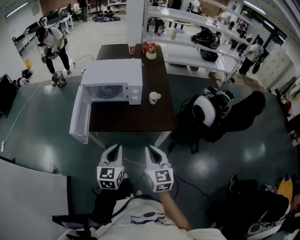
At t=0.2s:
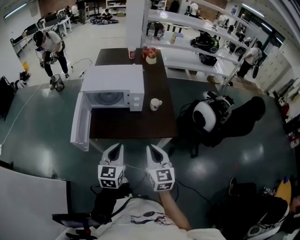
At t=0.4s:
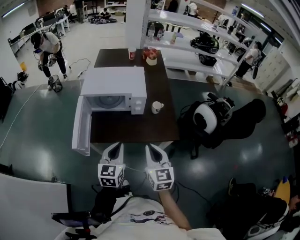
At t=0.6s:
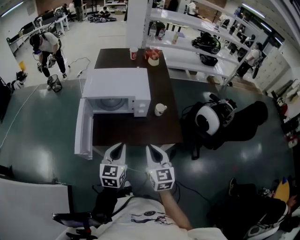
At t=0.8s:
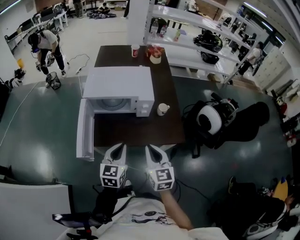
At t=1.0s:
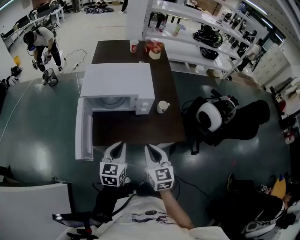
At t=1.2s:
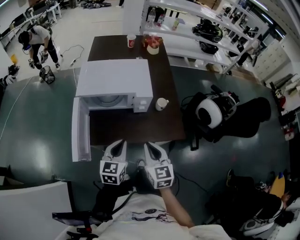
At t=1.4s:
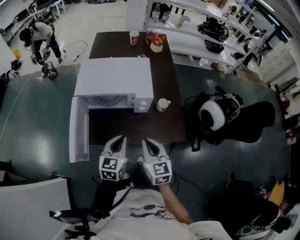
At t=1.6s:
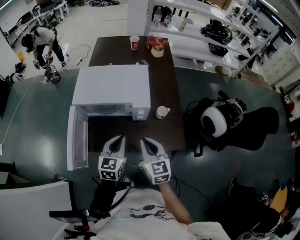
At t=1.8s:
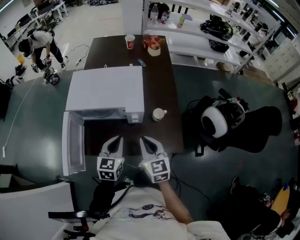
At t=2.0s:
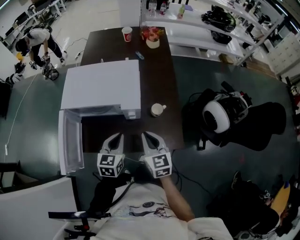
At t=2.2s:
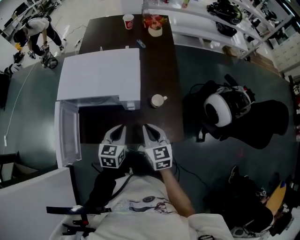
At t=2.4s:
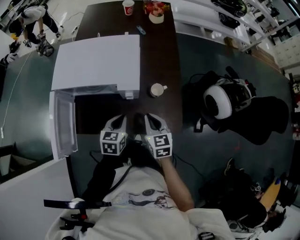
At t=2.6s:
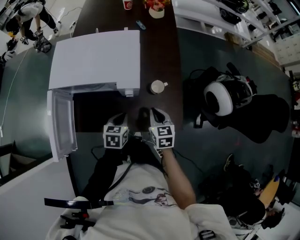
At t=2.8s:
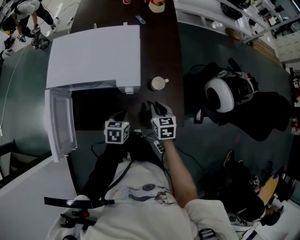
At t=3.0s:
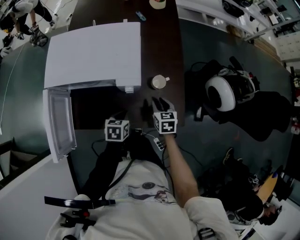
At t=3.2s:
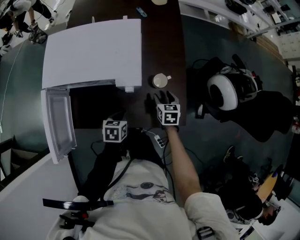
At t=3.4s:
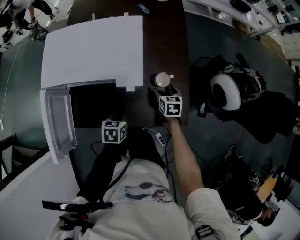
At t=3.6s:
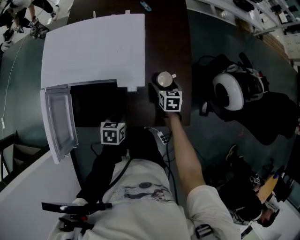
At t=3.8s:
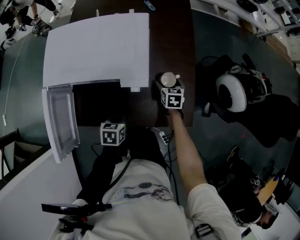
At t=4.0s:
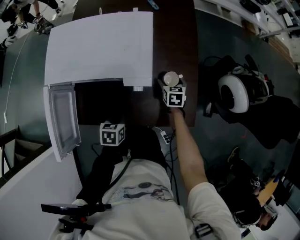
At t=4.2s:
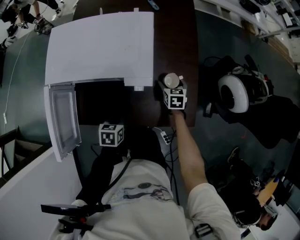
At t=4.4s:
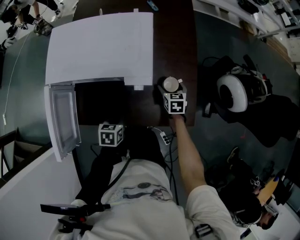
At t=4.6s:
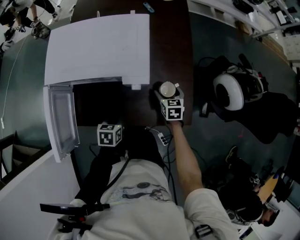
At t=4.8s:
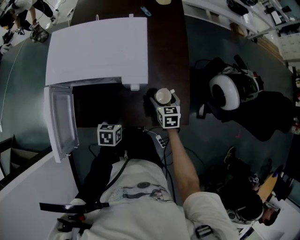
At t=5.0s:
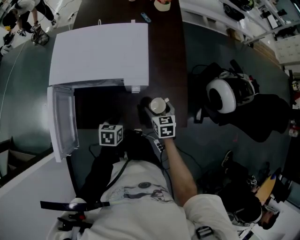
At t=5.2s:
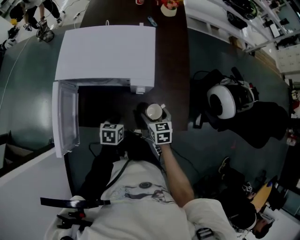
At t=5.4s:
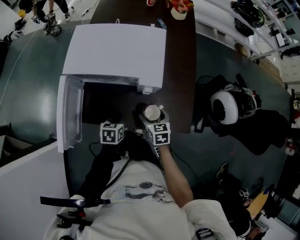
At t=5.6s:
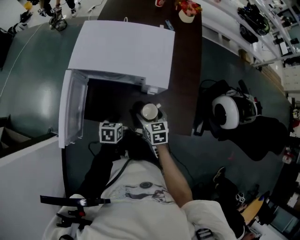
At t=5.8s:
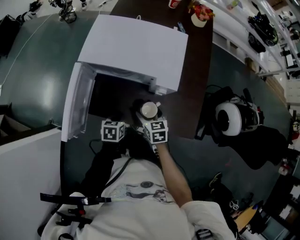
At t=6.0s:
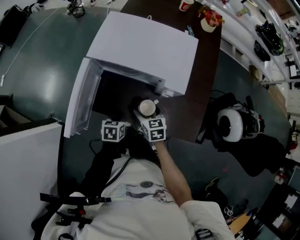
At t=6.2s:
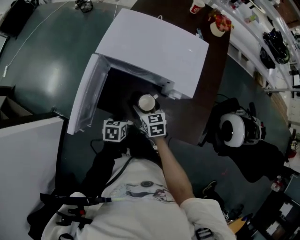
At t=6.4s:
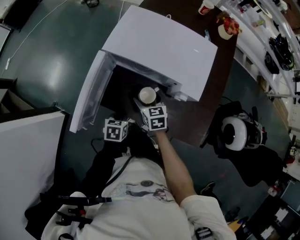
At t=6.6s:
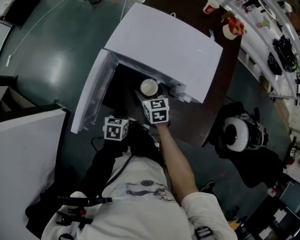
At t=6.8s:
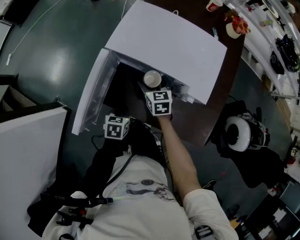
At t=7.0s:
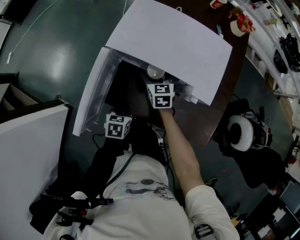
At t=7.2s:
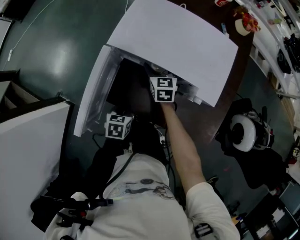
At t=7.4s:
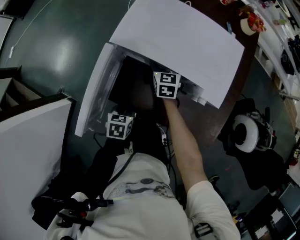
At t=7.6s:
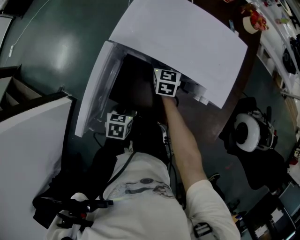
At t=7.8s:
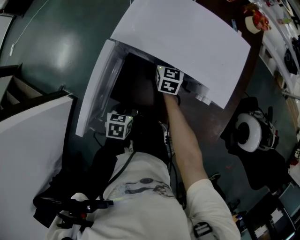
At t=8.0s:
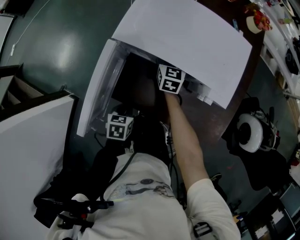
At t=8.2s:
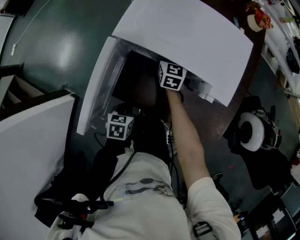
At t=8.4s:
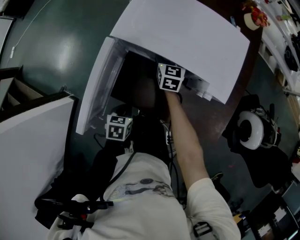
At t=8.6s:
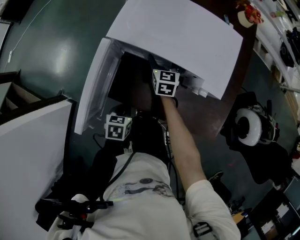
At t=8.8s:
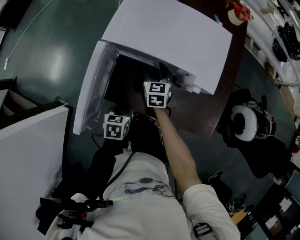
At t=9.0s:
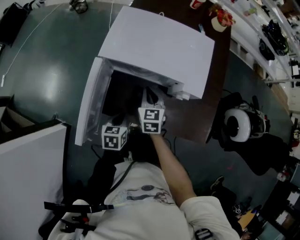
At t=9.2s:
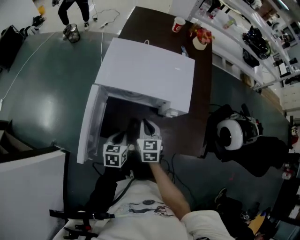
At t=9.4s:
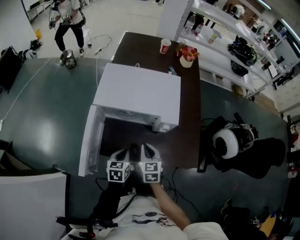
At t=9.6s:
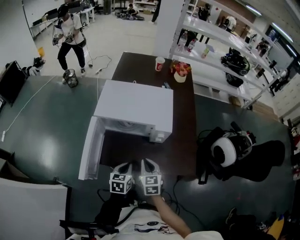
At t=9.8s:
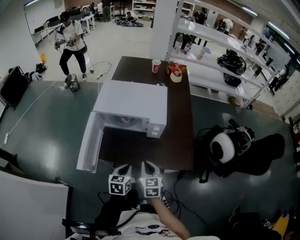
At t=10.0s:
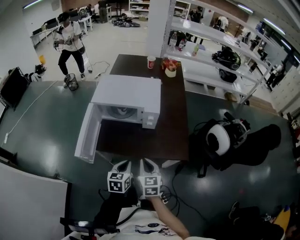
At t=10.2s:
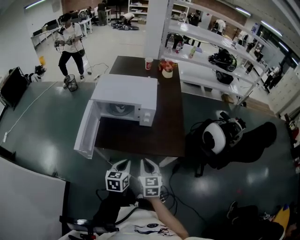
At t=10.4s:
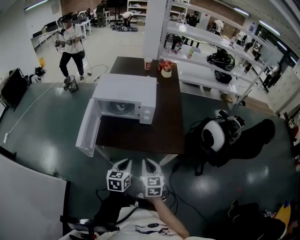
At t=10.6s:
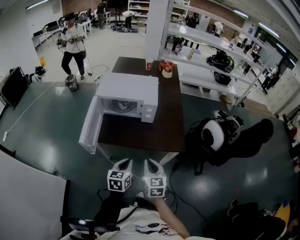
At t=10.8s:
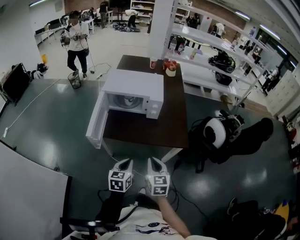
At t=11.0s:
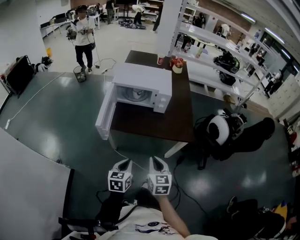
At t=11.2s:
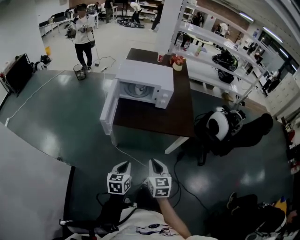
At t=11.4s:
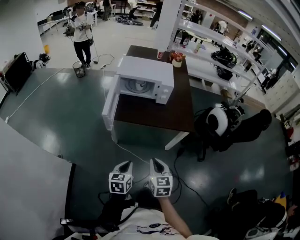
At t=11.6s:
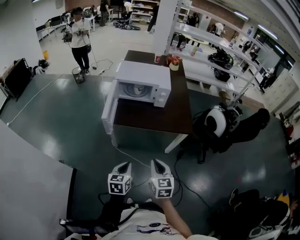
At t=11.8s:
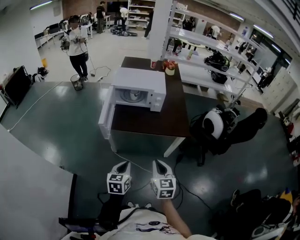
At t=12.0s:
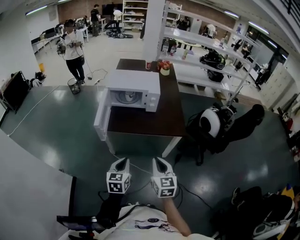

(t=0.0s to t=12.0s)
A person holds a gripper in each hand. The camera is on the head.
t=0.0s - t=1.6s: Both grippers travel together forward, approximately 20 cm.
t=1.6s - t=3.0s: The right gripper travels downward, to the right and forward by about 25 cm, and changes its angle by roughly 30 degrees, while the left gripper moves downward, about 20 cm, and tilts its fingers some 30 degrees downward.
t=3.0s - t=4.4s: The left gripper heads to the left, covering roughly 5 cm; the right gripper travels forward and downward by roughly 10 cm, and opens its fingers.
t=4.4s - t=6.0s: The right gripper is displaced to the left and backward by about 25 cm, and turns by roughly 30 degrees. The left gripper heads to the left, covering roughly 5 cm.
t=6.0s - t=7.6s: The right gripper travels forward by approximately 20 cm. Meanwhile the left gripper moves to the left, roughly 5 cm.
t=7.6s - t=9.0s: The right gripper shifts some 10 cm backward, and closes its fingers.
t=9.0s - t=10.4s: The left gripper is displaced backward, to the right and upward by about 25 cm, and changes its angle by about 20 degrees. Meanwhile the right gripper goes approximately 30 cm backward and to the right.
t=10.4s - t=12.0s: The left gripper travels backward and to the left by approximately 15 cm; the right gripper travels backward by roughly 15 cm.

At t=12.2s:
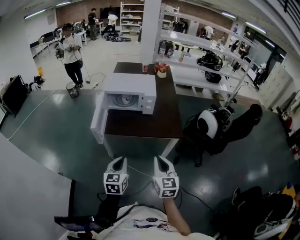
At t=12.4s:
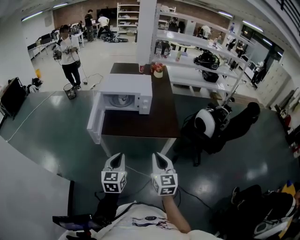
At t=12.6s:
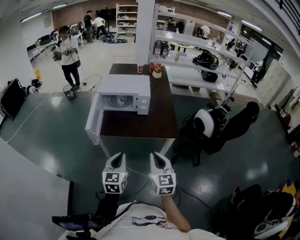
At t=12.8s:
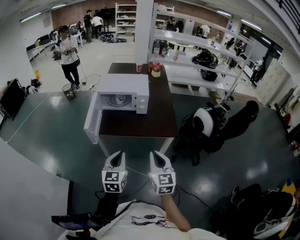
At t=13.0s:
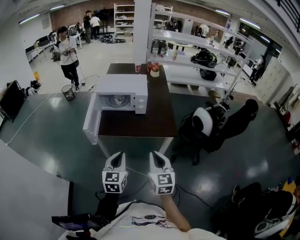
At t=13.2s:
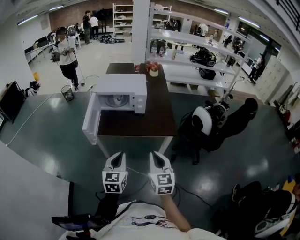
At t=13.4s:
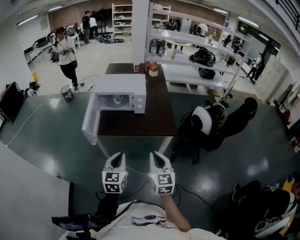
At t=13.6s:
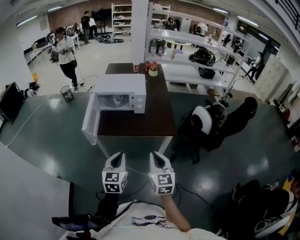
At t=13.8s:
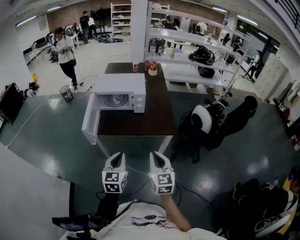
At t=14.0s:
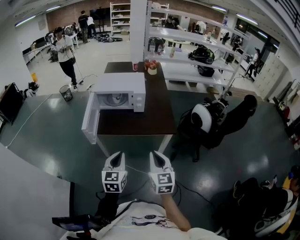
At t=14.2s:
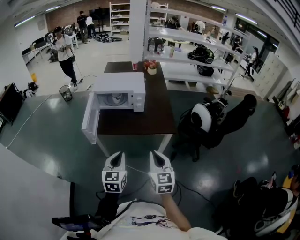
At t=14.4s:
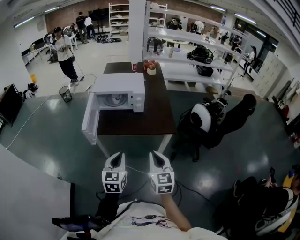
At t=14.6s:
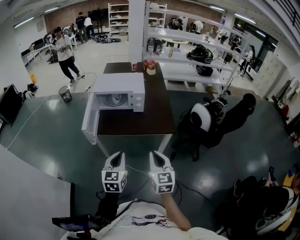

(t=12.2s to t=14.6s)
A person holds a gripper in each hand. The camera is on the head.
t=12.2s - t=13.4s: The left gripper moves some 5 cm.
t=13.4s - t=14.6s: The two grippers keep their place.

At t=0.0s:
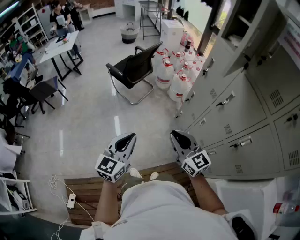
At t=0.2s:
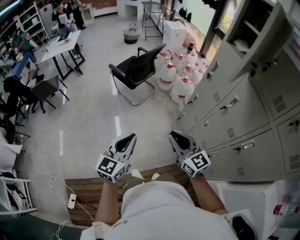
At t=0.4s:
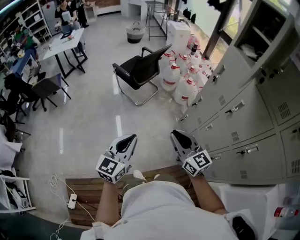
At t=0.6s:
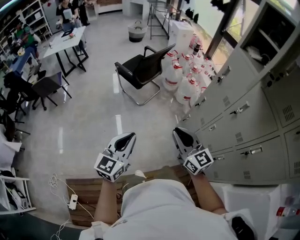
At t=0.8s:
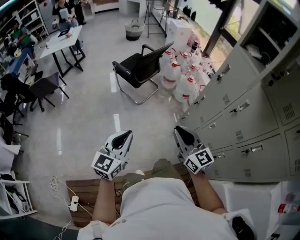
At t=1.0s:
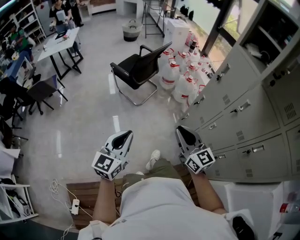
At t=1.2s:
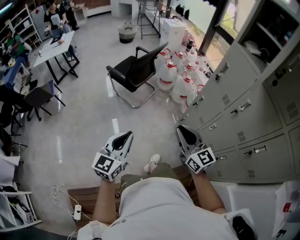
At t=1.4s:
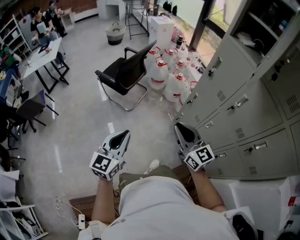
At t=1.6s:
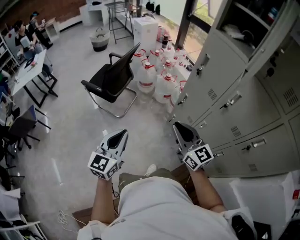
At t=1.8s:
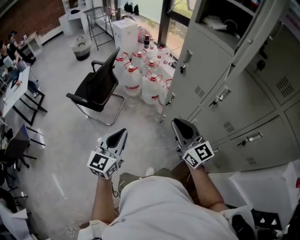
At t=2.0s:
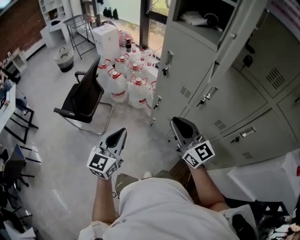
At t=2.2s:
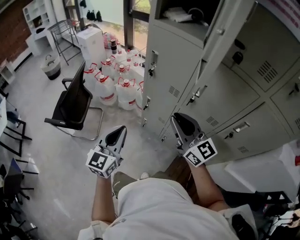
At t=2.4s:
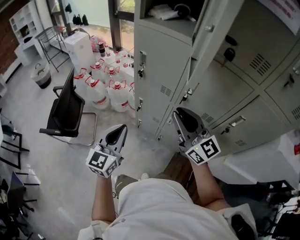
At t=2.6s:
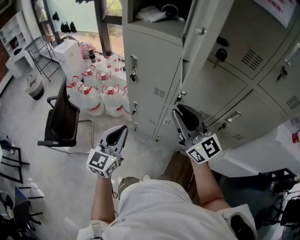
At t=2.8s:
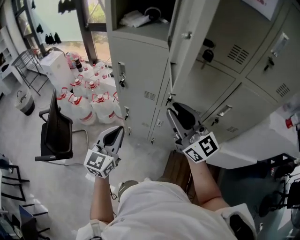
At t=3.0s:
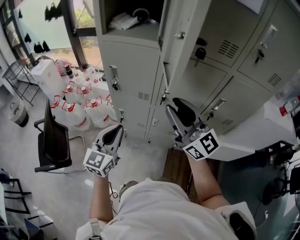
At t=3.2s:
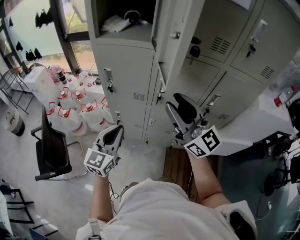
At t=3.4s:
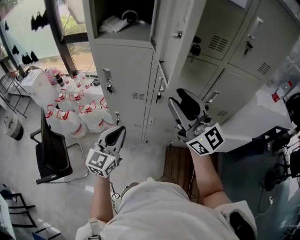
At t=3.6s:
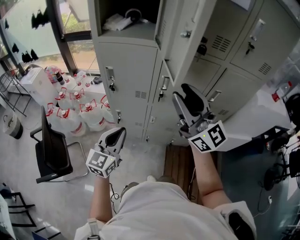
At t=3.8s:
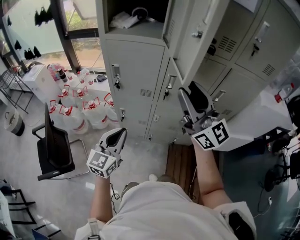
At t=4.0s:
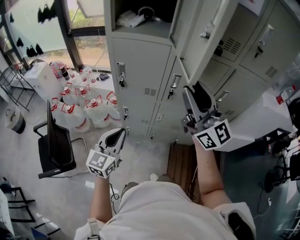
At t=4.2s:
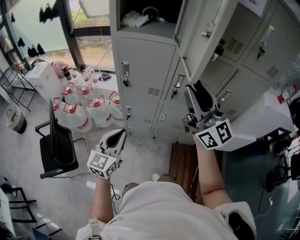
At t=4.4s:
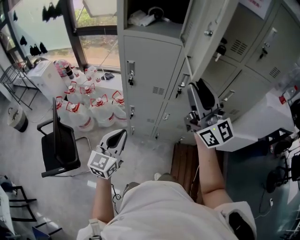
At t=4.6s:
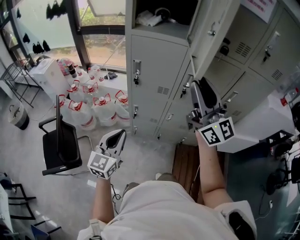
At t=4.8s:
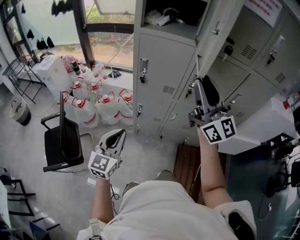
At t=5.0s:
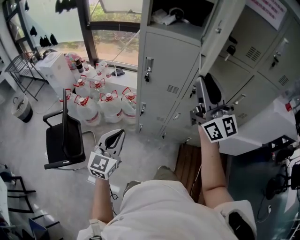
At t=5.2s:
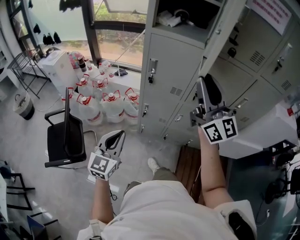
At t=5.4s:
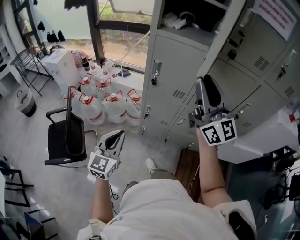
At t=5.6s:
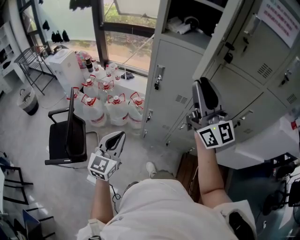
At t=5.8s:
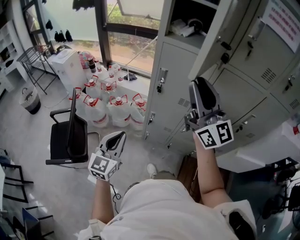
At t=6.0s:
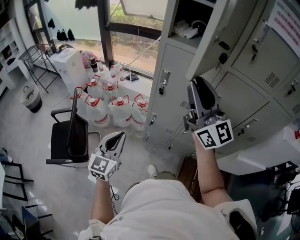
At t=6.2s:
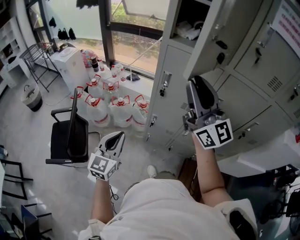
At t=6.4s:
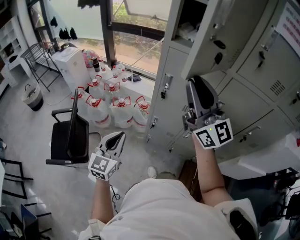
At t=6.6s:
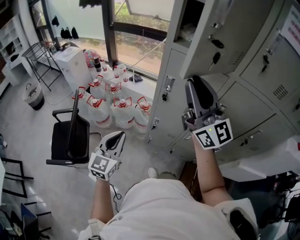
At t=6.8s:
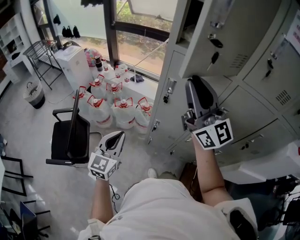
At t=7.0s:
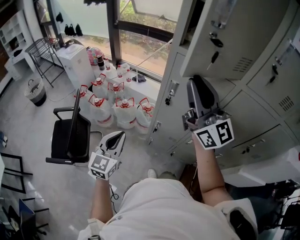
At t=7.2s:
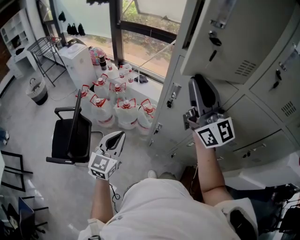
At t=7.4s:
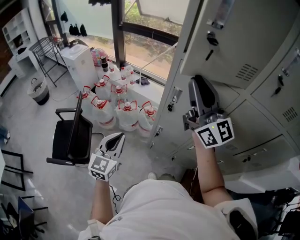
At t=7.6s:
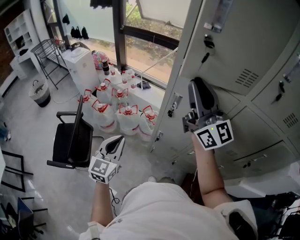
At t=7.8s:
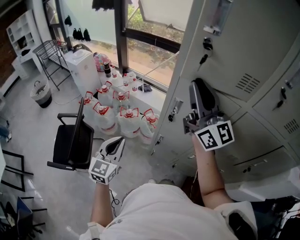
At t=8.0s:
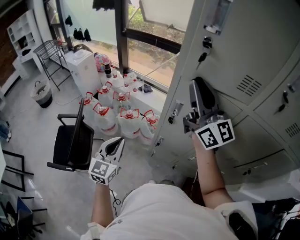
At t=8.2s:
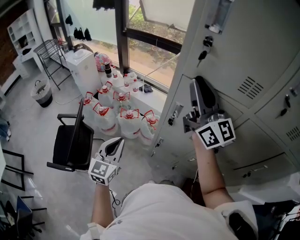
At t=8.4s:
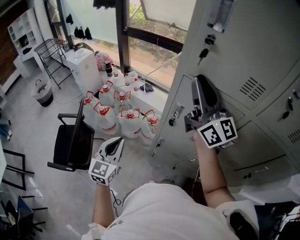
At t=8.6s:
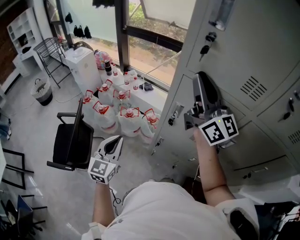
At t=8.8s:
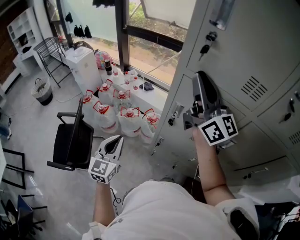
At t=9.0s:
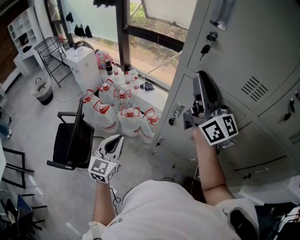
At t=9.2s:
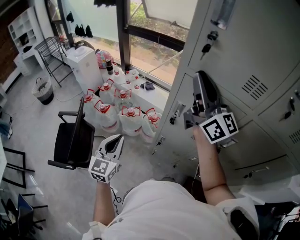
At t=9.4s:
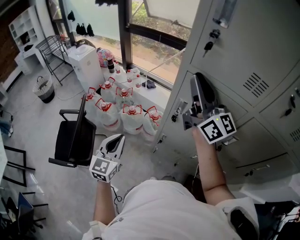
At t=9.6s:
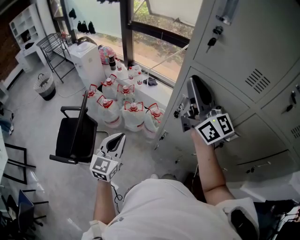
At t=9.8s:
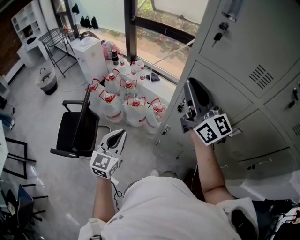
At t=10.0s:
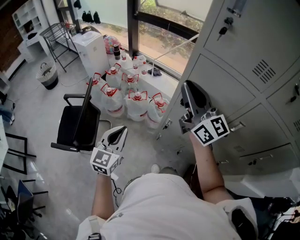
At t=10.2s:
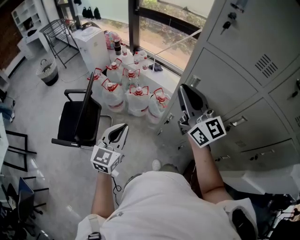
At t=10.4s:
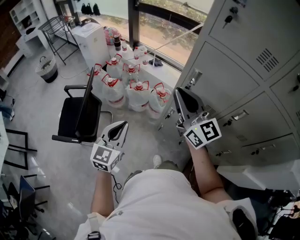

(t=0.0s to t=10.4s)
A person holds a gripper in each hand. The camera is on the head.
t=0.0s - t=1.4s: The left gripper heads forward, to the left and downward, covering about 20 cm, while the right gripper moves forward, approximately 15 cm.
t=1.4s - t=3.0s: The left gripper moves about 40 cm, and turns by about 50 degrees; the right gripper changes place by roughly 30 cm, and changes its angle by about 50 degrees.
t=3.0s - t=4.4s: The right gripper moves upward and to the left, approximately 10 cm; the left gripper moves to the left, roughly 10 cm.
t=4.4s - t=6.0s: The left gripper moves to the left, about 10 cm; the right gripper is displaced to the left and forward by approximately 15 cm.
t=6.0s - t=7.4s: The two grippers go roughly 10 cm forward.
t=7.4s - t=9.0s: Both grippers move forward, some 5 cm.
t=9.0s - t=10.4s: The left gripper is displaced backward and to the left by roughly 10 cm, while the right gripper shifts about 25 cm downward, to the left and backward, and rotates approximately 20 degrees.
